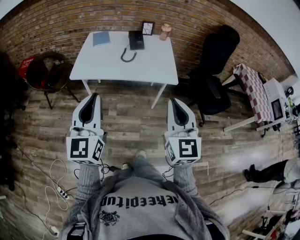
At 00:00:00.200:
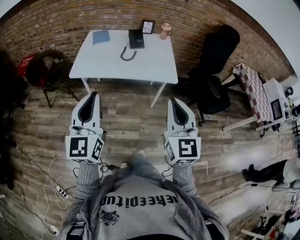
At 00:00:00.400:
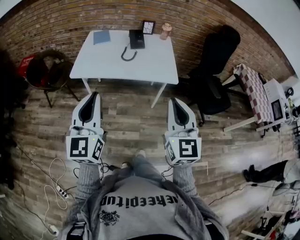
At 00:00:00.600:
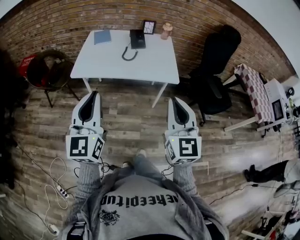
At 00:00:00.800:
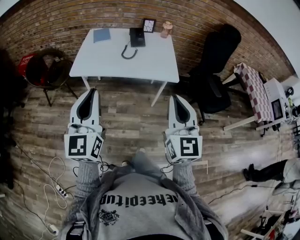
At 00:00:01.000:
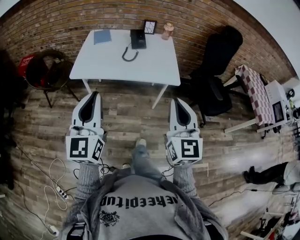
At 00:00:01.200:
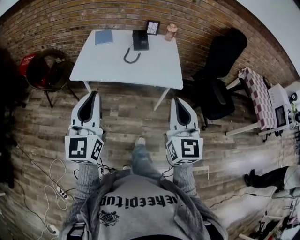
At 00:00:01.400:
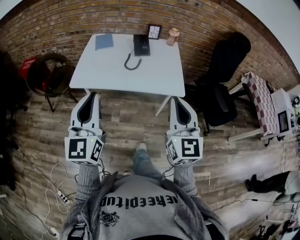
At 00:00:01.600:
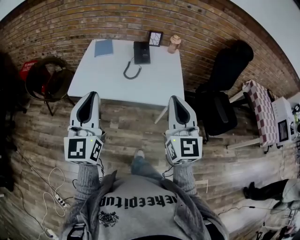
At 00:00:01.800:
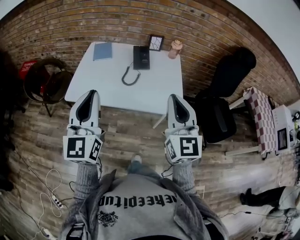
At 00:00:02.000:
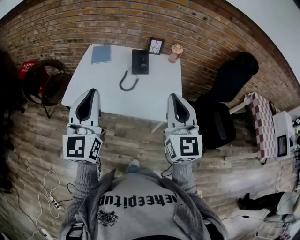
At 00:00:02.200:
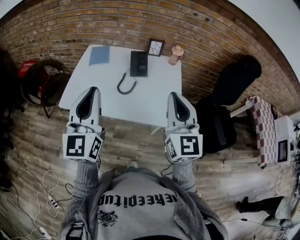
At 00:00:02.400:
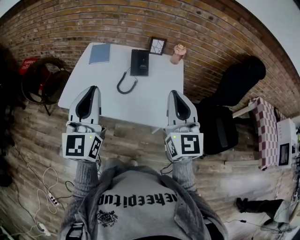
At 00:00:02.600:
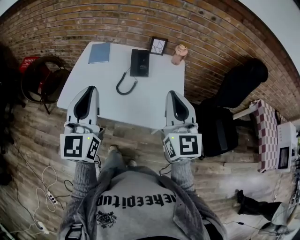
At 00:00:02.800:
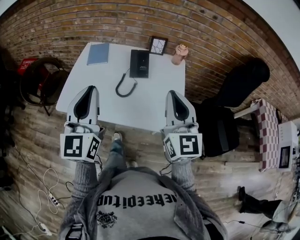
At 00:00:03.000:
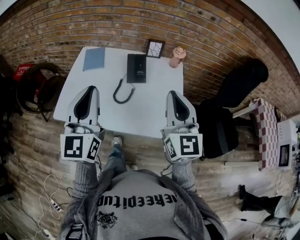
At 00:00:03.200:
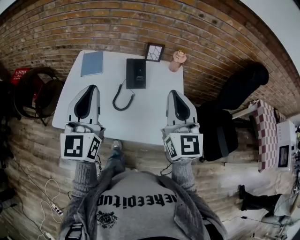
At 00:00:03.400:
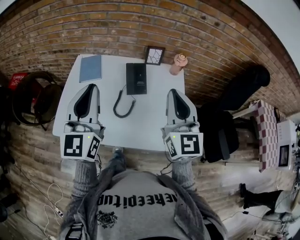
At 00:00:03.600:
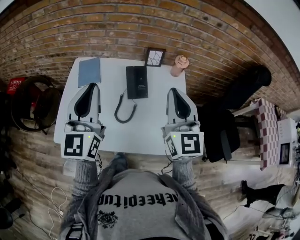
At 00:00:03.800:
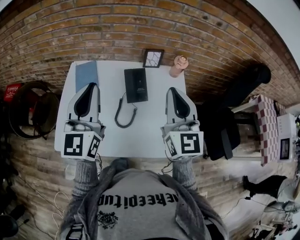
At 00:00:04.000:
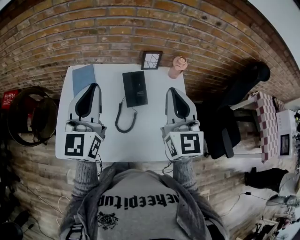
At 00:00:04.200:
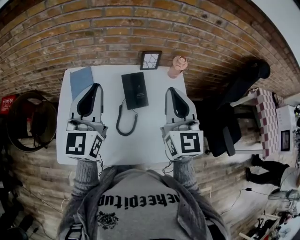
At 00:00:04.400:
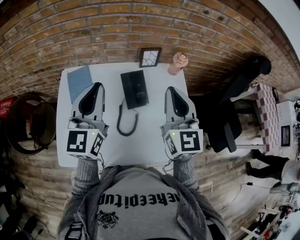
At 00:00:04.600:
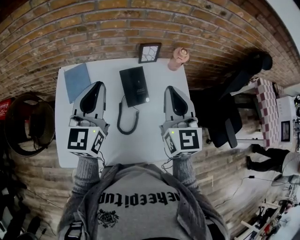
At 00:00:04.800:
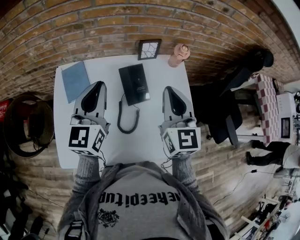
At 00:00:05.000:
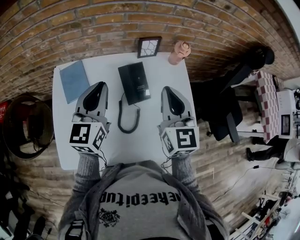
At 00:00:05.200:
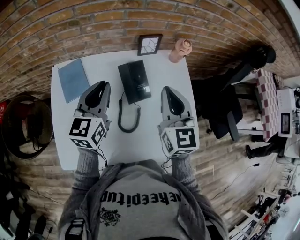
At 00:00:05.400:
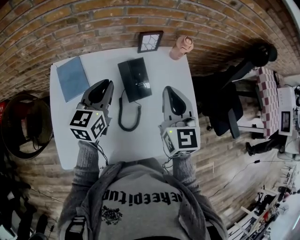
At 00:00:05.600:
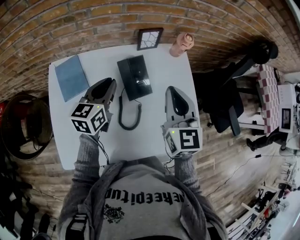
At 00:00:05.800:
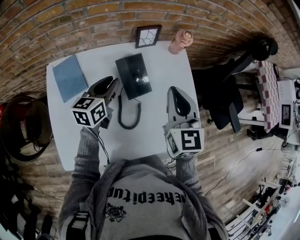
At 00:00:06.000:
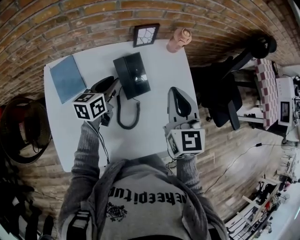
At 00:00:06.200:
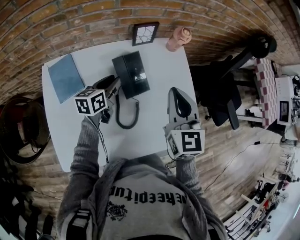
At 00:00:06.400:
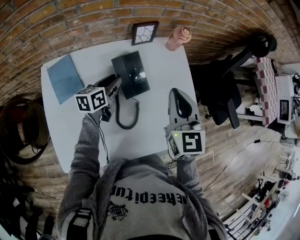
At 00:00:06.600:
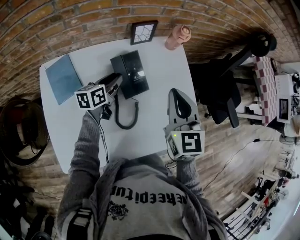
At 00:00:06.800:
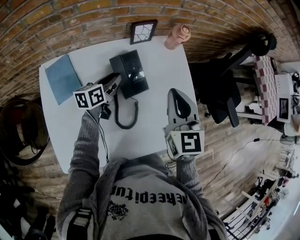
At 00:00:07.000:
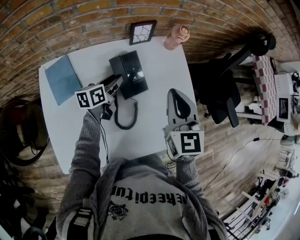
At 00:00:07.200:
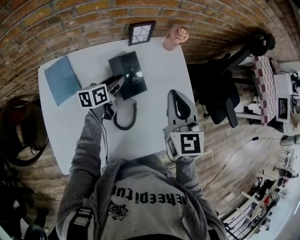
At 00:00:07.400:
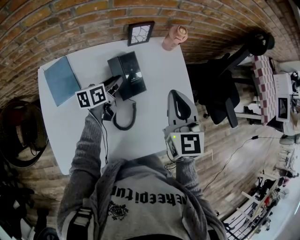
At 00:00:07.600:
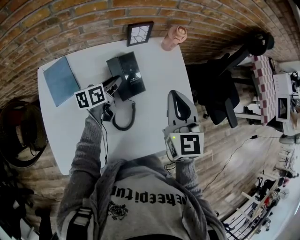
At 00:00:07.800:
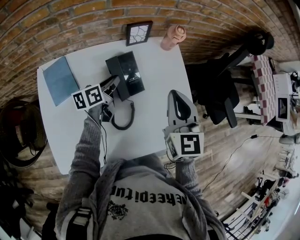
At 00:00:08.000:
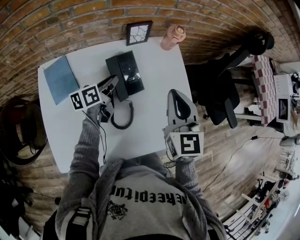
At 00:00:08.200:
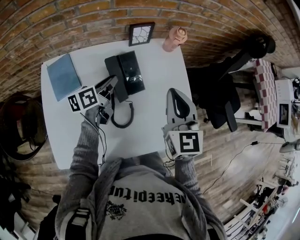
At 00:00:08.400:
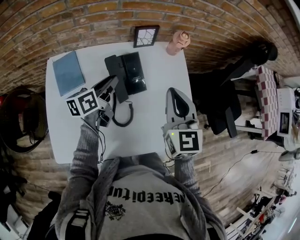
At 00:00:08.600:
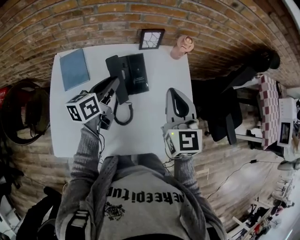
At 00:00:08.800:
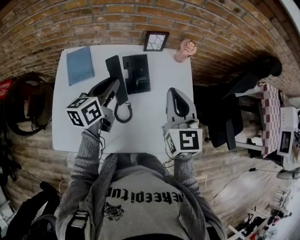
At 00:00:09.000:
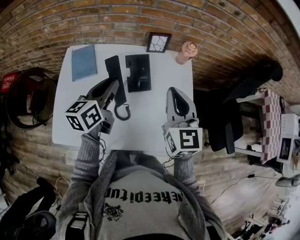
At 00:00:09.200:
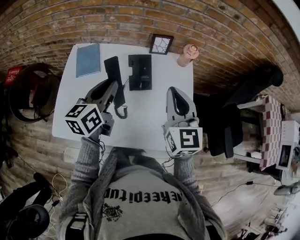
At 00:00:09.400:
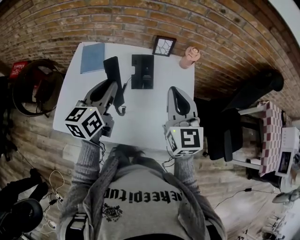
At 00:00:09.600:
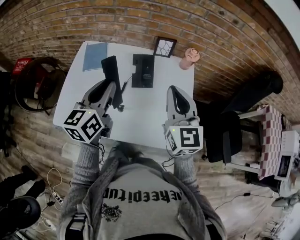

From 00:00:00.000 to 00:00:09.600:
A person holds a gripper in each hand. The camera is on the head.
From 00:00:00.000 to 00:00:01.600: Both grippers move forward, approximately 15 cm.
From 00:00:01.600 to 00:00:03.200: Both grippers travel together forward, some 25 cm.
From 00:00:03.200 to 00:00:04.800: The right gripper is displaced forward and downward by approximately 20 cm. The left gripper shifts approximately 25 cm forward, and rotates about 20 degrees.
From 00:00:04.800 to 00:00:06.400: The right gripper goes about 5 cm downward. Meanwhile the left gripper moves downward, roughly 25 cm, rotates some 50 degrees, and opens.
From 00:00:06.400 to 00:00:08.000: There are only small adjustments of the grippers.
From 00:00:08.000 to 00:00:09.600: The right gripper moves upward, roughly 10 cm, and changes its angle by about 30 degrees. Meanwhile the left gripper heads upward, covering about 25 cm, and changes its angle by roughly 50 degrees.

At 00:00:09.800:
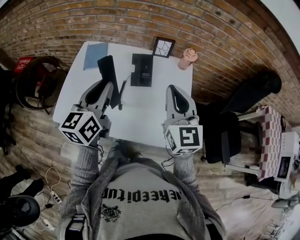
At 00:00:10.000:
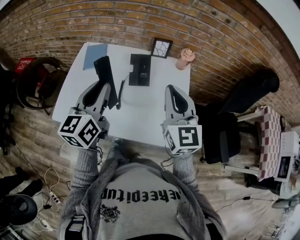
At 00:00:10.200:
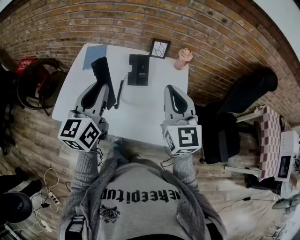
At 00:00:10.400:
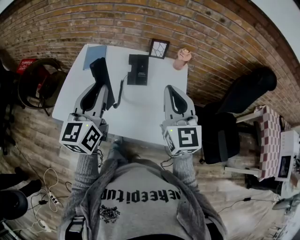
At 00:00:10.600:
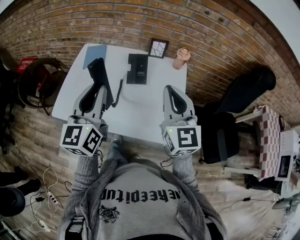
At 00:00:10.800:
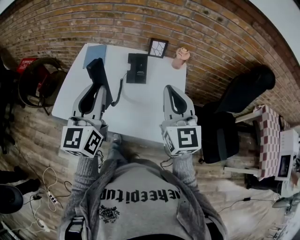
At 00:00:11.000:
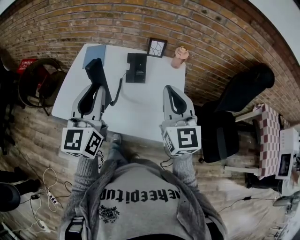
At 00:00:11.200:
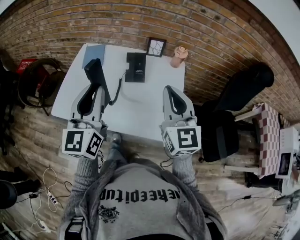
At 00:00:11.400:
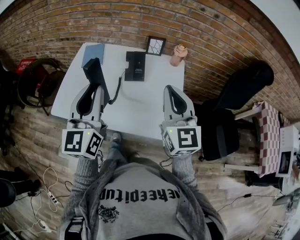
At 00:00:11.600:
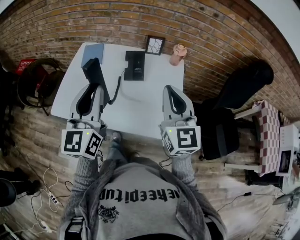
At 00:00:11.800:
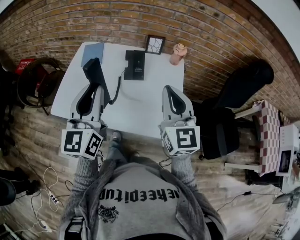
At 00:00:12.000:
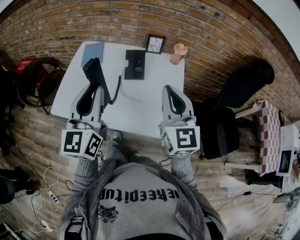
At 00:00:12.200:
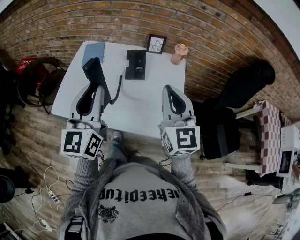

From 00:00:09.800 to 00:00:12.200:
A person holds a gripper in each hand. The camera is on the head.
From 00:00:09.800 to 00:00:11.000: The right gripper heads backward, covering some 5 cm; the left gripper is displaced backward and upward by approximately 10 cm.
From 00:00:11.000 to 00:00:12.200: Both grippers stay put.

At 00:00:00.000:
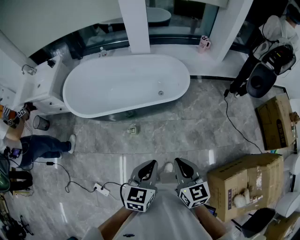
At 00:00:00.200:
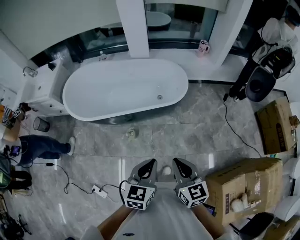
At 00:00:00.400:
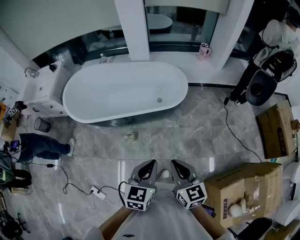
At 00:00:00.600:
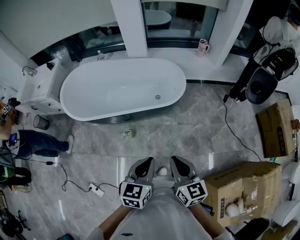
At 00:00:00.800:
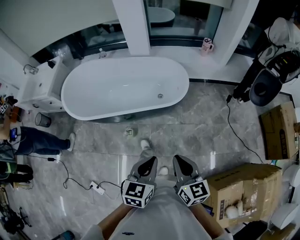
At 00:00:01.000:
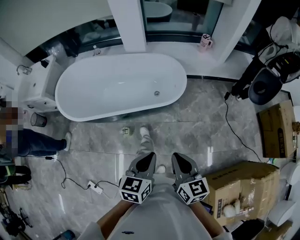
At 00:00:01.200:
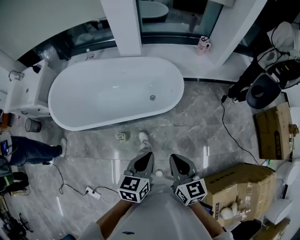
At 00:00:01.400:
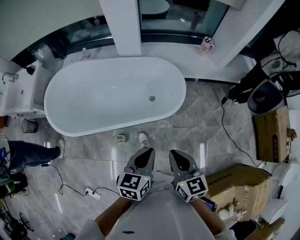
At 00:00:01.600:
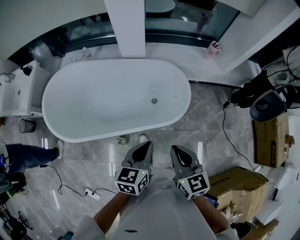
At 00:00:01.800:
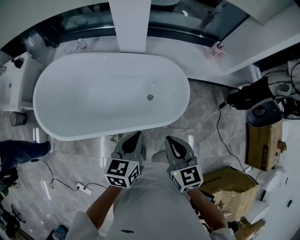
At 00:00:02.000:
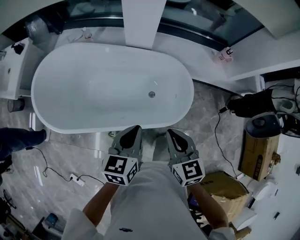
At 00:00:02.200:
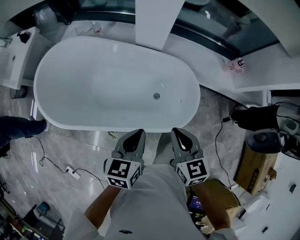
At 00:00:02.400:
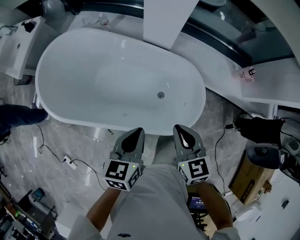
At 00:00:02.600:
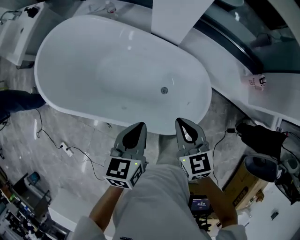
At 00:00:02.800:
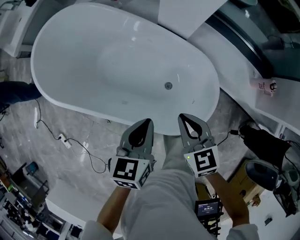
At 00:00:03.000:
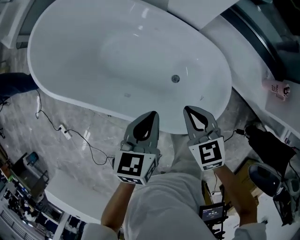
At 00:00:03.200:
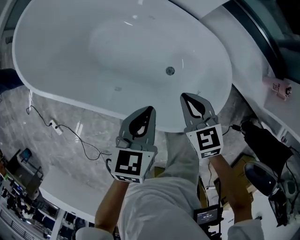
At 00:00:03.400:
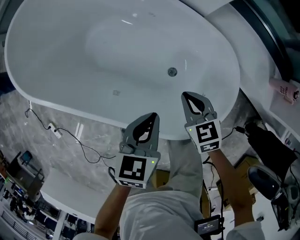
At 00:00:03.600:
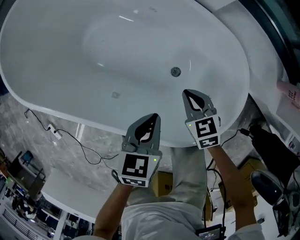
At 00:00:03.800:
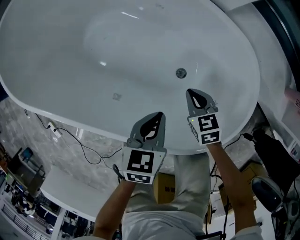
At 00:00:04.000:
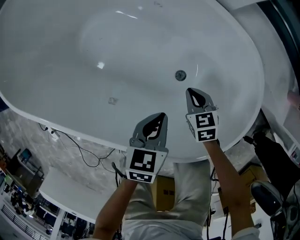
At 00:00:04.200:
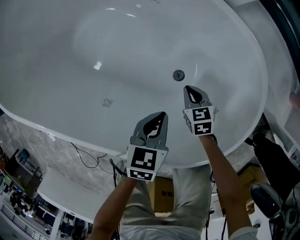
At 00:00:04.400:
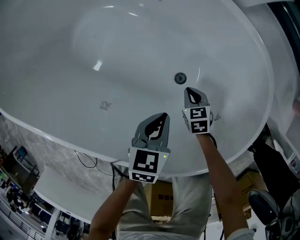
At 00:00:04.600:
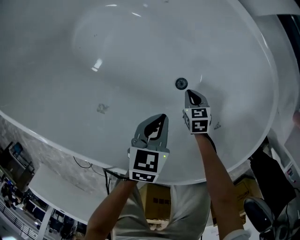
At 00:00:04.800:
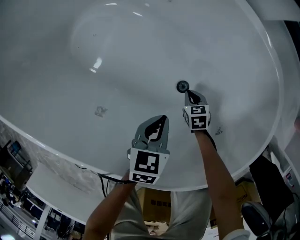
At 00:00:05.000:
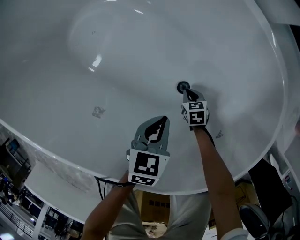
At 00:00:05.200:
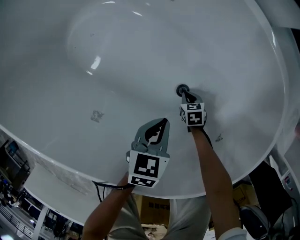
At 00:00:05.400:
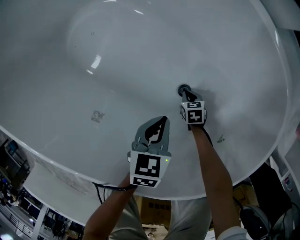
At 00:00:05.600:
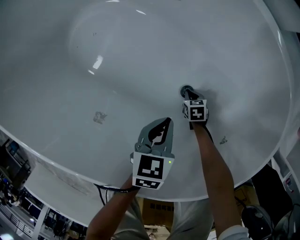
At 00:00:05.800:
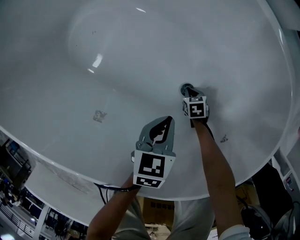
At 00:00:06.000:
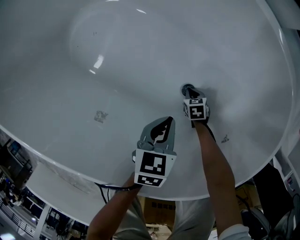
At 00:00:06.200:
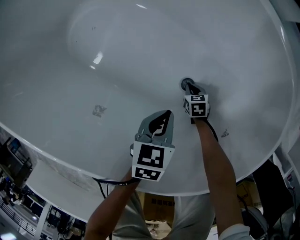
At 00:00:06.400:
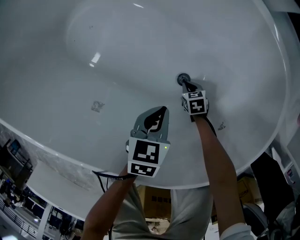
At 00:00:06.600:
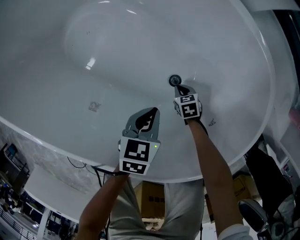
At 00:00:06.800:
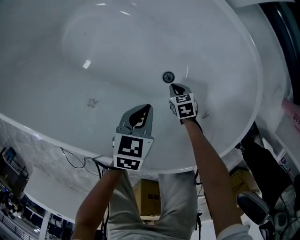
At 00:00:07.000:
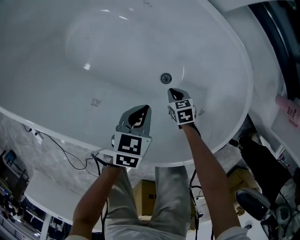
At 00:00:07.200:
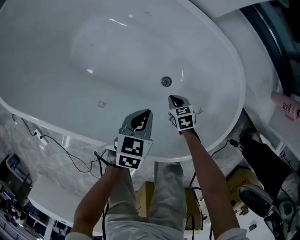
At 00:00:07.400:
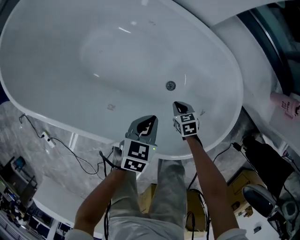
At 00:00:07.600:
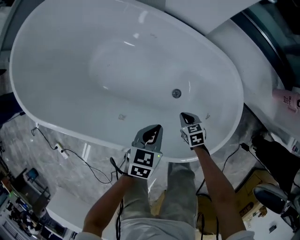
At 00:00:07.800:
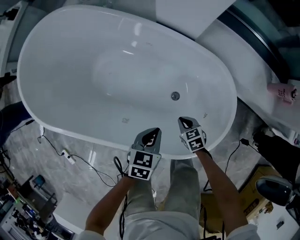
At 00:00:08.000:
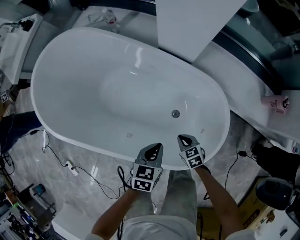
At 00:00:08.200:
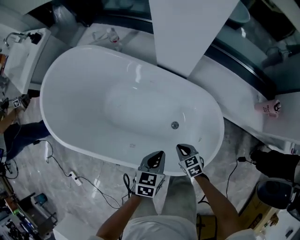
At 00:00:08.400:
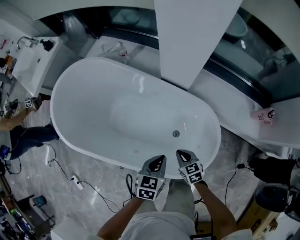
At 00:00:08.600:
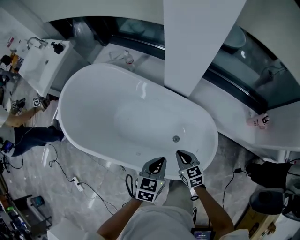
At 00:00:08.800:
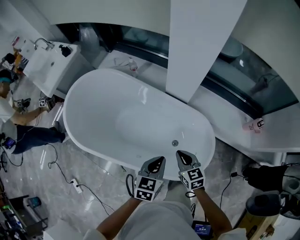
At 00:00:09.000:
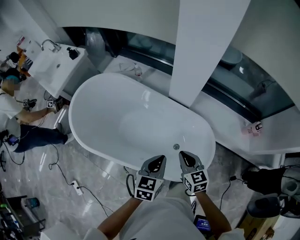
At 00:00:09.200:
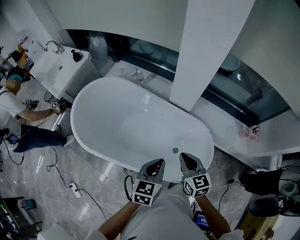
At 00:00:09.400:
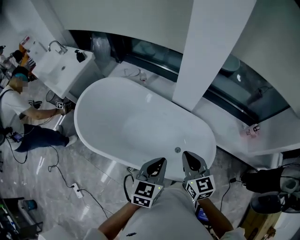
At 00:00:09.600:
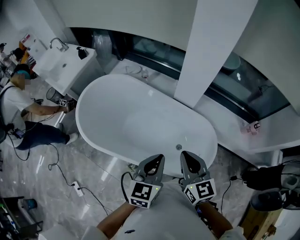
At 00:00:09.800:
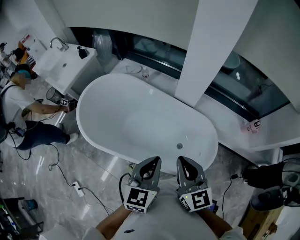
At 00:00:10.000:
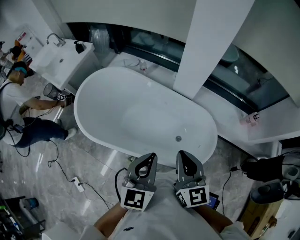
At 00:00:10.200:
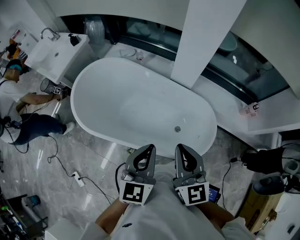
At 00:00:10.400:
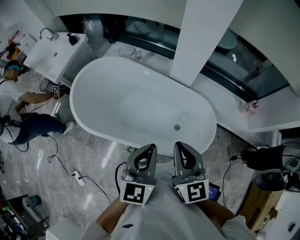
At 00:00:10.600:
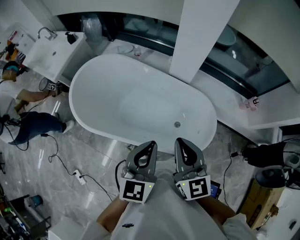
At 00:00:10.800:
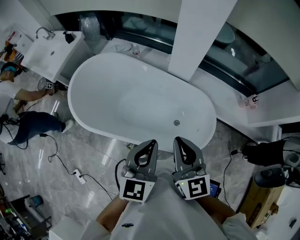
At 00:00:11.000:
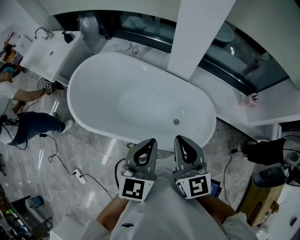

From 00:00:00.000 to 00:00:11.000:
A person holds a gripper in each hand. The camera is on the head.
From 00:00:00.000 to 00:00:01.600: Both grippers move forward, about 40 cm.
From 00:00:01.600 to 00:00:03.200: The right gripper ends up roughly 50 cm from where it was, and swivels roughly 50 degrees, while the left gripper moves about 35 cm, and turns by approximately 30 degrees.
From 00:00:03.200 to 00:00:04.800: Both grippers travel together downward, approximately 40 cm. The right gripper changes its angle by approximately 20 degrees.
From 00:00:04.800 to 00:00:06.200: The right gripper travels downward by approximately 10 cm.
From 00:00:06.200 to 00:00:07.800: Both grippers move upward, approximately 30 cm.
From 00:00:07.800 to 00:00:09.400: The grippers both shift upward by some 50 cm. The right gripper points its fingers some 40 degrees further upward, while the left gripper swivels about 30 degrees.
From 00:00:09.400 to 00:00:11.000: The right gripper travels upward, backward and to the left by approximately 10 cm, while the left gripper goes roughly 10 cm upward and to the left.
